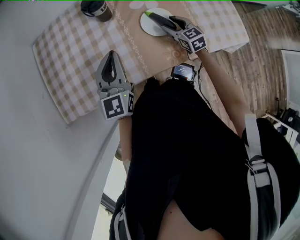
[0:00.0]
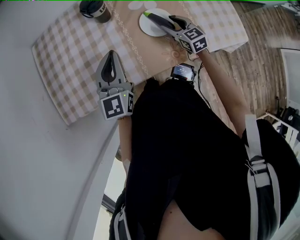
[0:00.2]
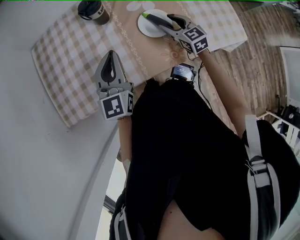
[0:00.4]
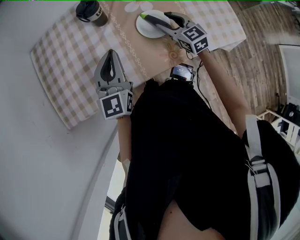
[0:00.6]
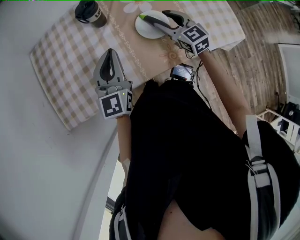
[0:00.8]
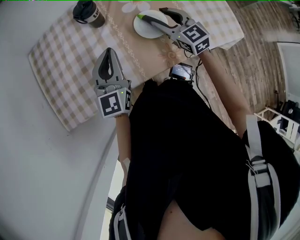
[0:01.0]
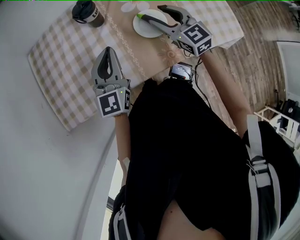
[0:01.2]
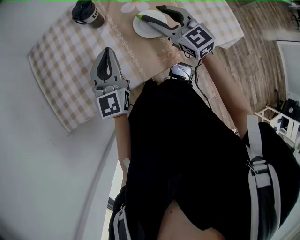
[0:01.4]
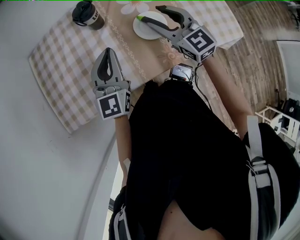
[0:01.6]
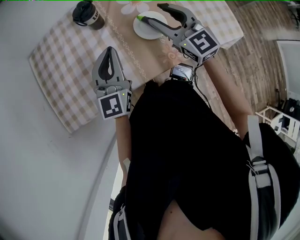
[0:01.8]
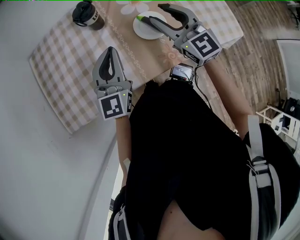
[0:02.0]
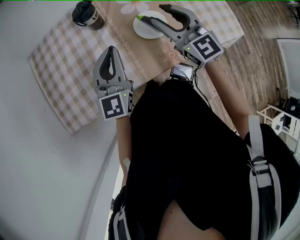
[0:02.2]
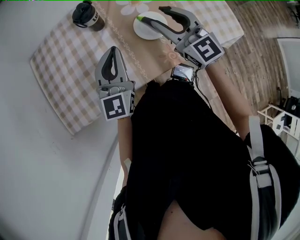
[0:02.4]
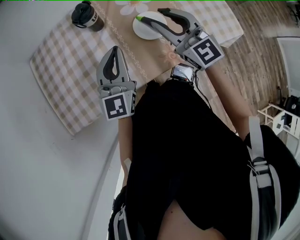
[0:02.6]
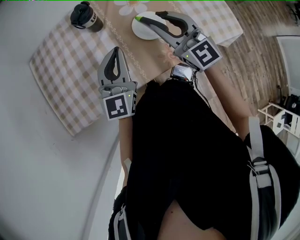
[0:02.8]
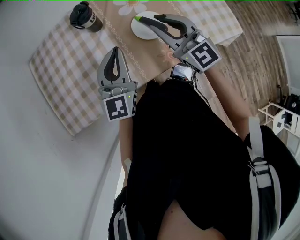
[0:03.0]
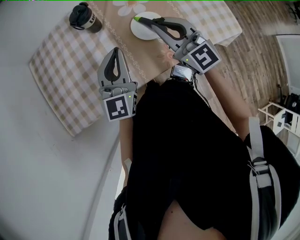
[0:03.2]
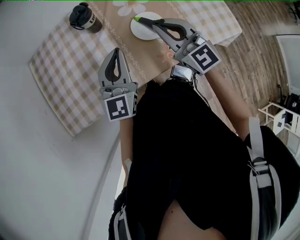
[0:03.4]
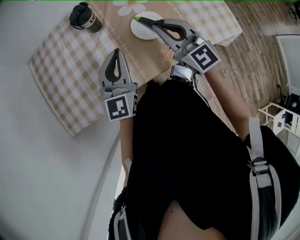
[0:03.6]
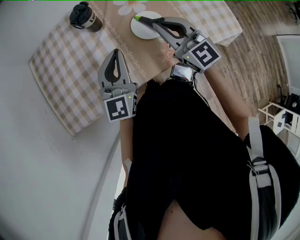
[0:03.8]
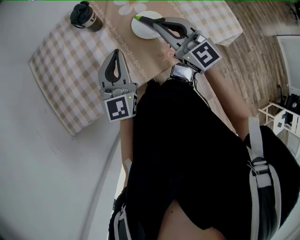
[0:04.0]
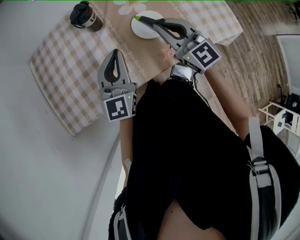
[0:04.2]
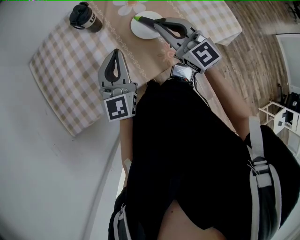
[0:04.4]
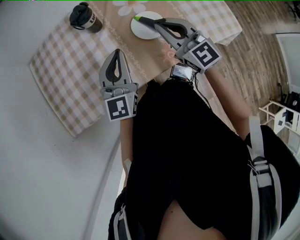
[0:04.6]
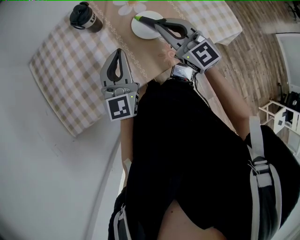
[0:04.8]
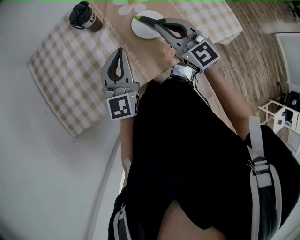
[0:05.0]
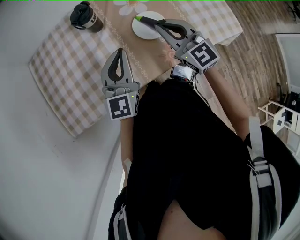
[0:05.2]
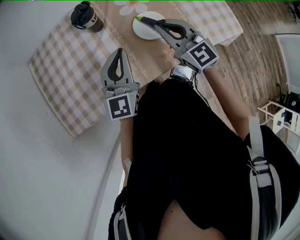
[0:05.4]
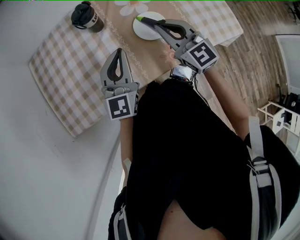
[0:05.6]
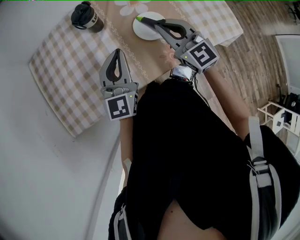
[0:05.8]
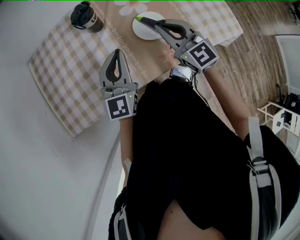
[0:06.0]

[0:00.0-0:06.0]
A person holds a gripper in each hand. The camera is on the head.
0:00.0 to 0:01.6: The right gripper travels upward by some 20 cm, and turns by some 20 degrees.
0:01.6 to 0:03.0: The right gripper closes.
0:03.0 to 0:04.4: The right gripper closes its fingers.
0:04.4 to 0:06.0: The grippers stay close to where they were, moving slightly.

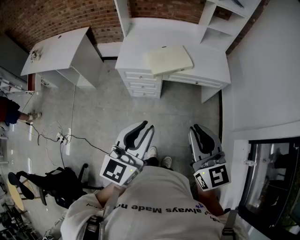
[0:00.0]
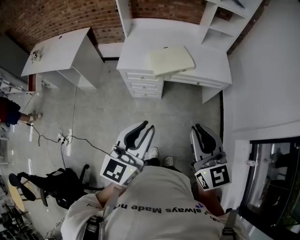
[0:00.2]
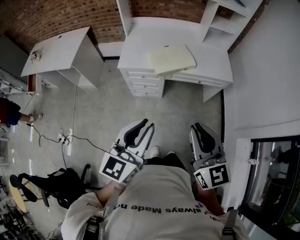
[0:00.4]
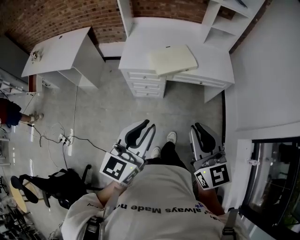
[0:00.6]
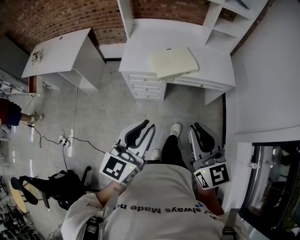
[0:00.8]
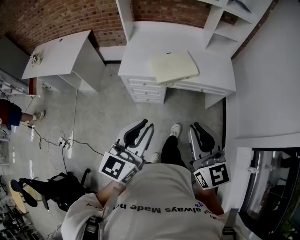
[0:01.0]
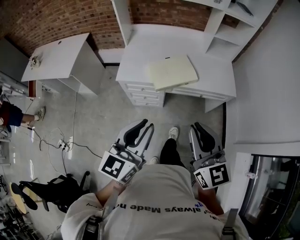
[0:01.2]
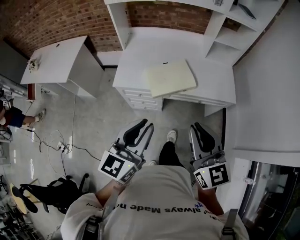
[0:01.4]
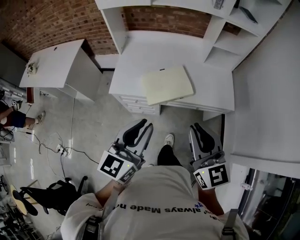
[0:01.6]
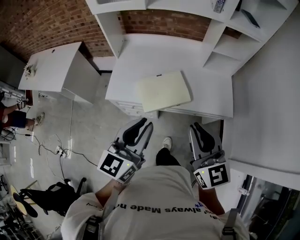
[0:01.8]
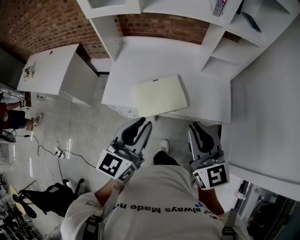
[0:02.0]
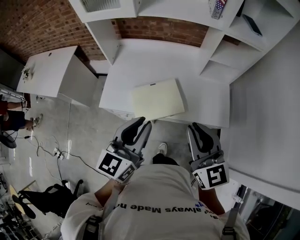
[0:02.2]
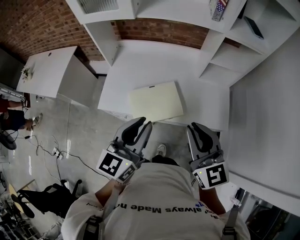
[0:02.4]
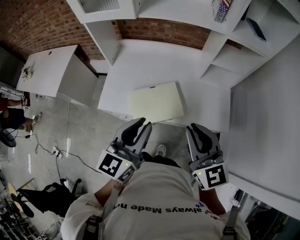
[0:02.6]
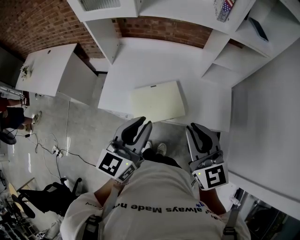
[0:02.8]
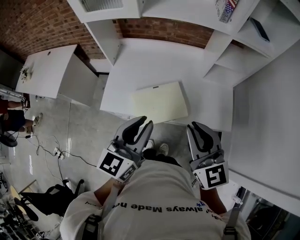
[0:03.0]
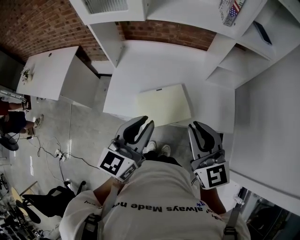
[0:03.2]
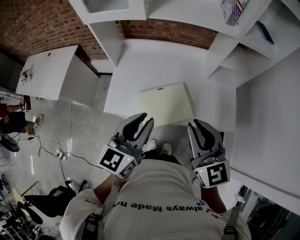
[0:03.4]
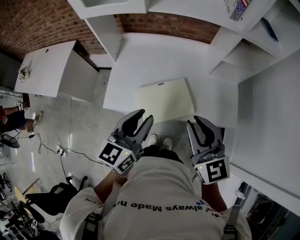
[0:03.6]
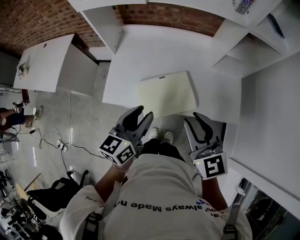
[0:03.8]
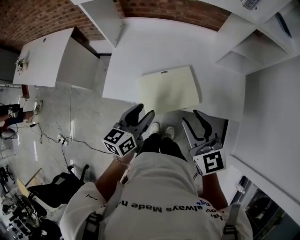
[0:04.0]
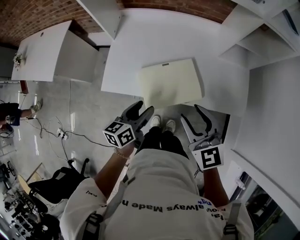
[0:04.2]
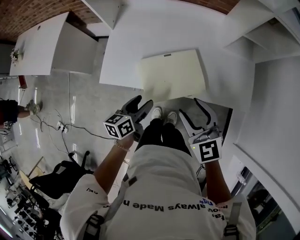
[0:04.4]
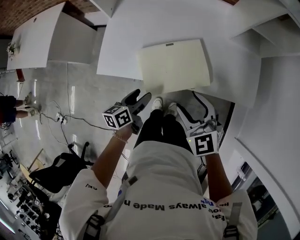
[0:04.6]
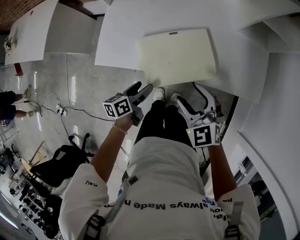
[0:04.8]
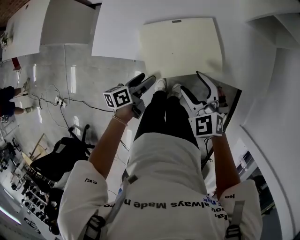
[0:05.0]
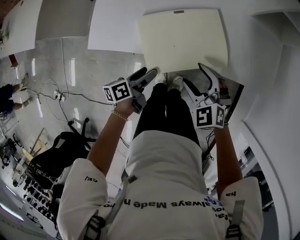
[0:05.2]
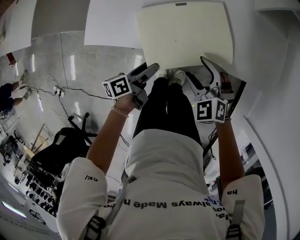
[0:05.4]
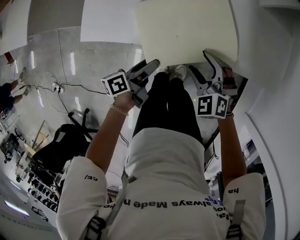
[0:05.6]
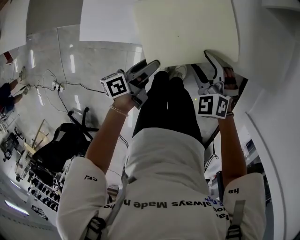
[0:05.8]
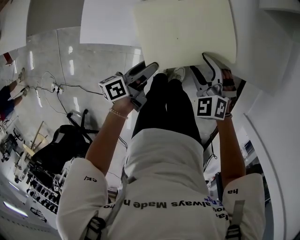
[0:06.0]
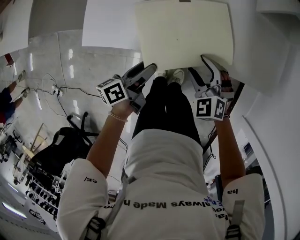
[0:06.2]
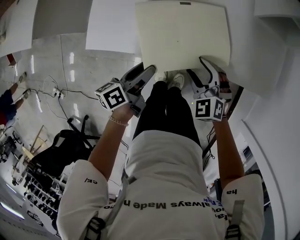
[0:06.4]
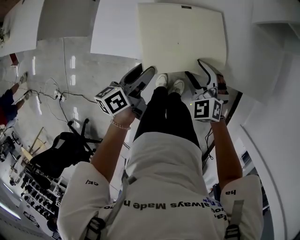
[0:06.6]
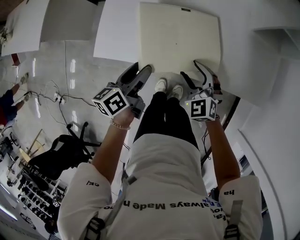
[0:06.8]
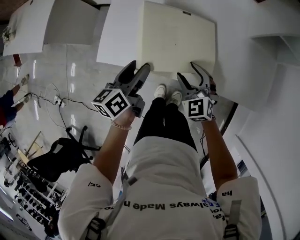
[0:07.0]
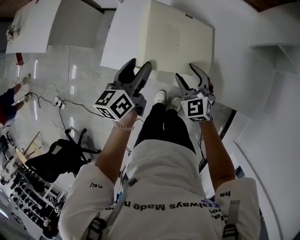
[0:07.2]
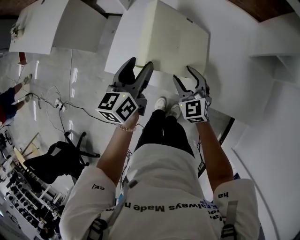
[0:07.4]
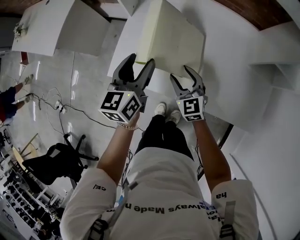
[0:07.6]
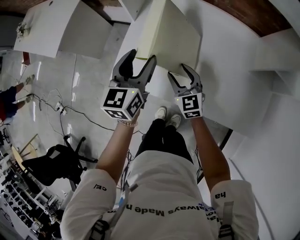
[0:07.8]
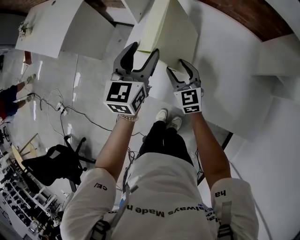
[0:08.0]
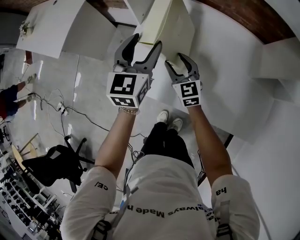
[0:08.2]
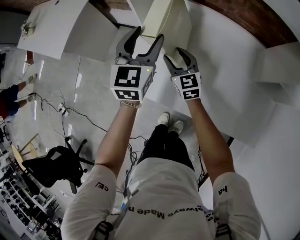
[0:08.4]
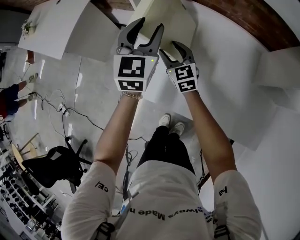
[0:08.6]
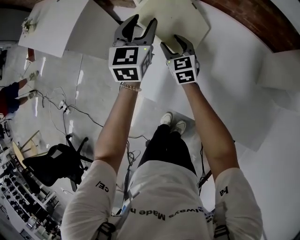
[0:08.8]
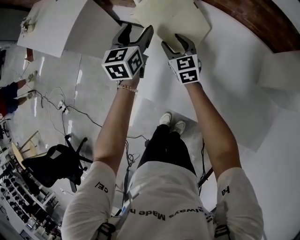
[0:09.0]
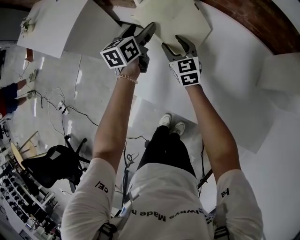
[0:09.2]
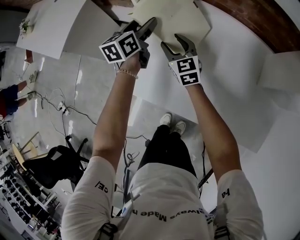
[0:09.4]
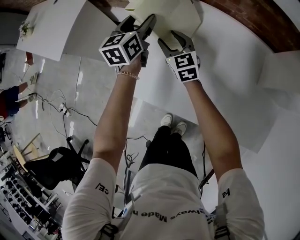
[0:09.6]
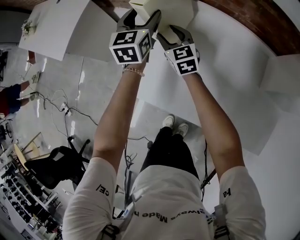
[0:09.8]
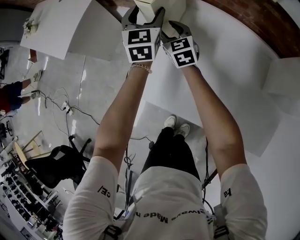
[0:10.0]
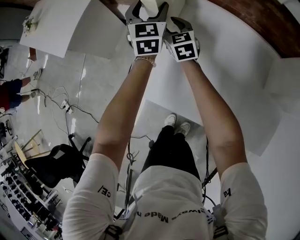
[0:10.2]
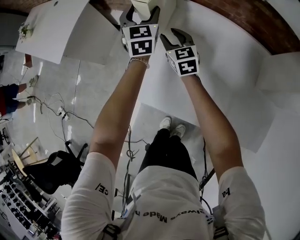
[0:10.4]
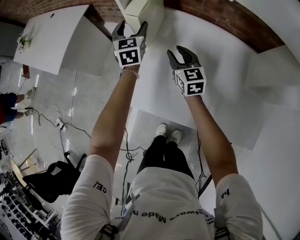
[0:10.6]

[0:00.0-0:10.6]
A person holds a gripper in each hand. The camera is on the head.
0:00.0 to 0:01.6: The grippers both shift forward by some 25 cm.
0:01.6 to 0:03.0: The grippers both shift forward by some 20 cm.
0:03.0 to 0:04.6: The two grippers go about 30 cm downward. The right gripper rotates some 30 degrees, and opens its fingers; the left gripper changes its angle by roughly 50 degrees, and opens.
0:04.6 to 0:06.0: The left gripper goes roughly 10 cm downward, and turns by about 20 degrees; the right gripper travels downward by about 20 cm, and rotates some 20 degrees.
0:06.0 to 0:07.6: The right gripper heads forward, to the left and upward, covering approximately 20 cm, and turns by some 30 degrees, while the left gripper is displaced upward and forward by some 30 cm, and swivels some 60 degrees.
0:07.6 to 0:09.0: The left gripper goes approximately 20 cm forward, while the right gripper travels forward and to the left by approximately 25 cm.
0:09.0 to 0:10.6: The right gripper heads to the right and upward, covering about 10 cm, and moves some 10 cm forward and comes back; the left gripper goes roughly 10 cm forward.

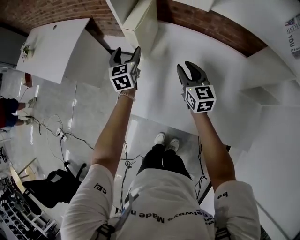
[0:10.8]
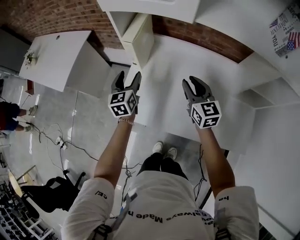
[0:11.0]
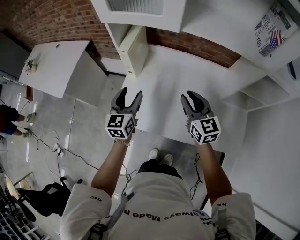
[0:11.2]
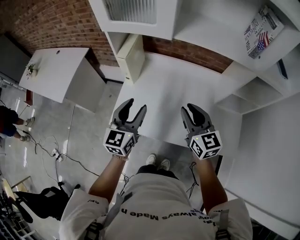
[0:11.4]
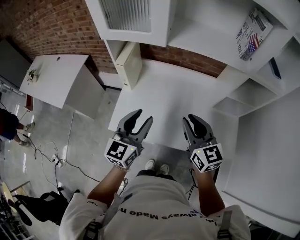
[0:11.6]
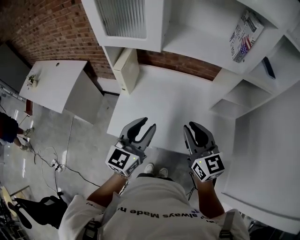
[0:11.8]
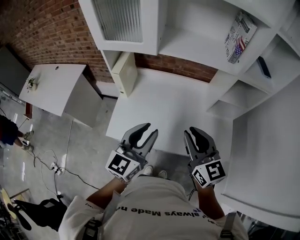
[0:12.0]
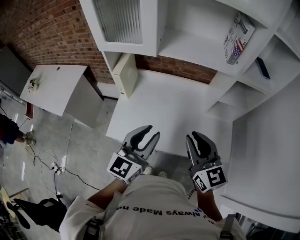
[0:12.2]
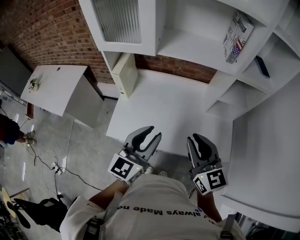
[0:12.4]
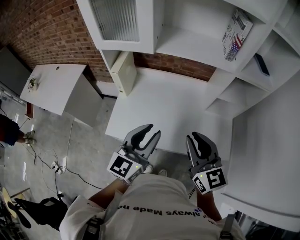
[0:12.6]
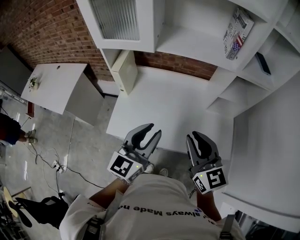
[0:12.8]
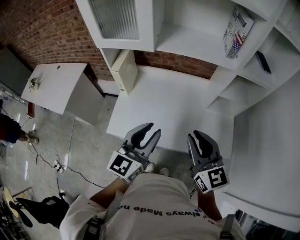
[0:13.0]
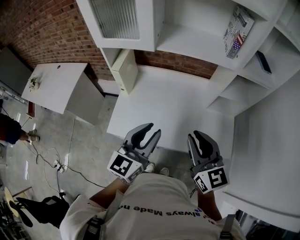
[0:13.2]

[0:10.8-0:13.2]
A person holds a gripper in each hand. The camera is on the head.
0:10.8 to 0:12.0: The right gripper travels backward, upward and to the right by about 35 cm. The left gripper travels backward, to the right and upward by roughly 50 cm, changes its angle by roughly 40 degrees, and closes its fingers.
0:12.0 to 0:13.2: The grippers make only small movements.

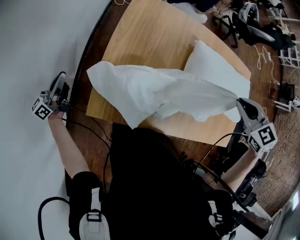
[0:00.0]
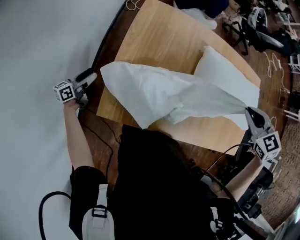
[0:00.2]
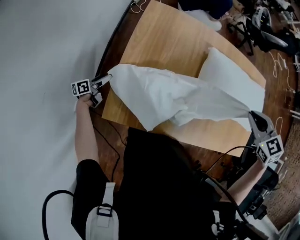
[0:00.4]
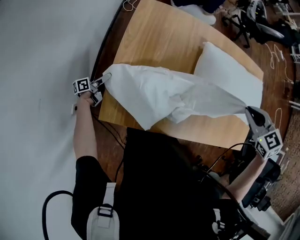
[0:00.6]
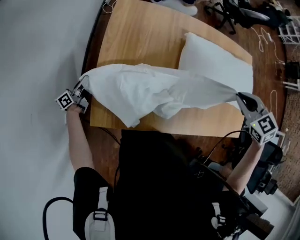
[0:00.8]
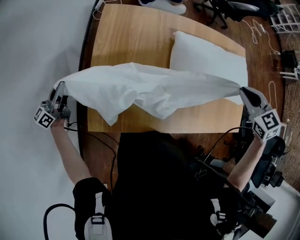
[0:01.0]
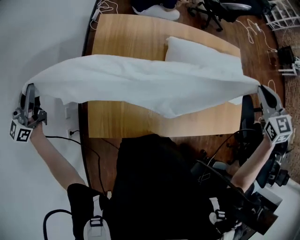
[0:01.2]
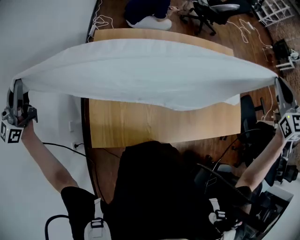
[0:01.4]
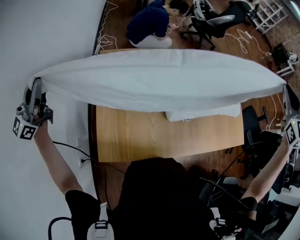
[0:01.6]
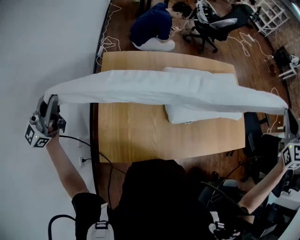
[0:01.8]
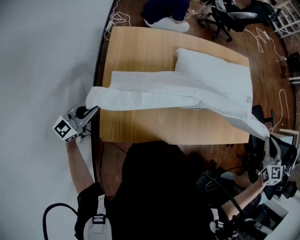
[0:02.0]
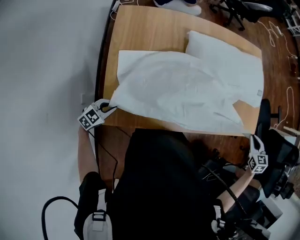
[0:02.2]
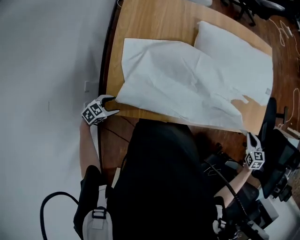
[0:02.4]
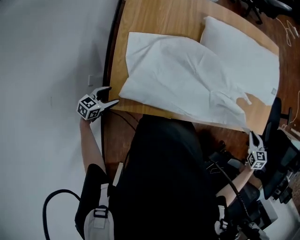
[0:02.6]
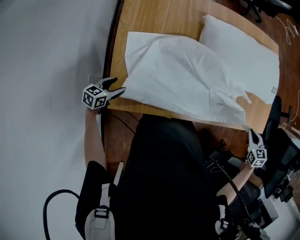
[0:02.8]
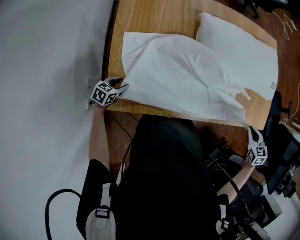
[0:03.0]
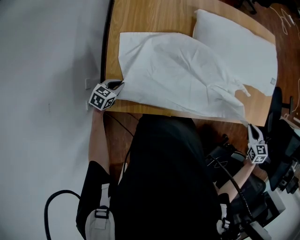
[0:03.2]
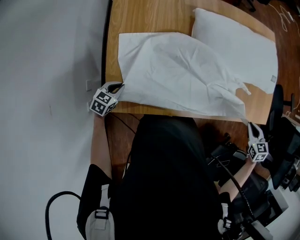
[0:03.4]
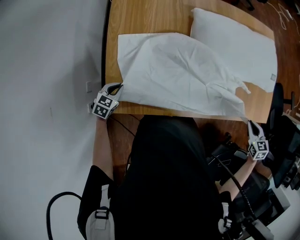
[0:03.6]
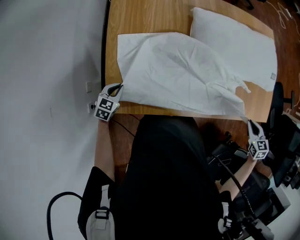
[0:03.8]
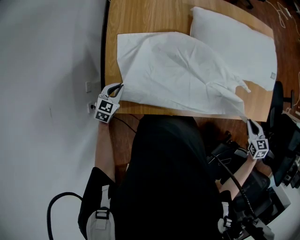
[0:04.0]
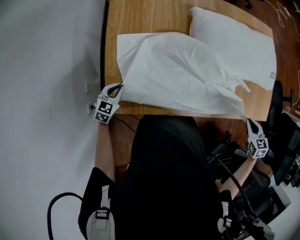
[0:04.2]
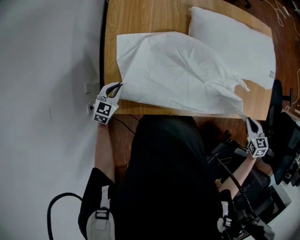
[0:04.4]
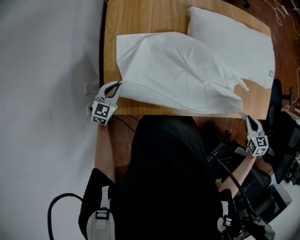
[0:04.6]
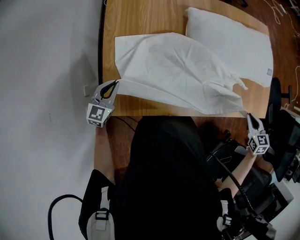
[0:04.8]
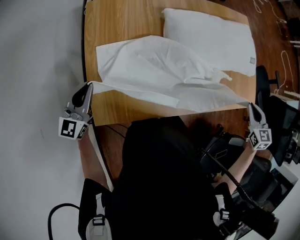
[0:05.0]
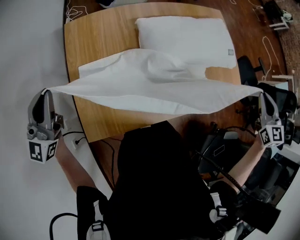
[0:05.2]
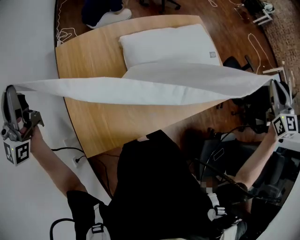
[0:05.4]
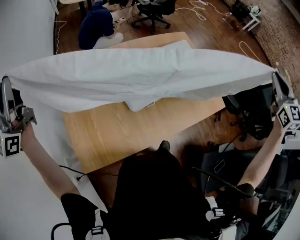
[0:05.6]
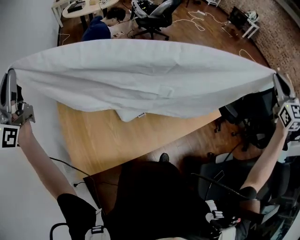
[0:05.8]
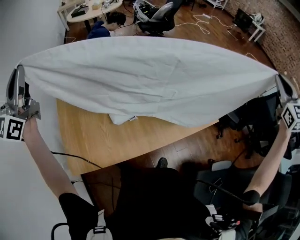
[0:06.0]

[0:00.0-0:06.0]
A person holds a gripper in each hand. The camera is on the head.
0:00.0 to 0:01.6: The grippers both shift upward by approximately 30 cm. The right gripper points its fingers some 40 degrees further upward. Meanwhile the left gripper rotates approximately 40 degrees, and opens, then closes once more.
0:01.6 to 0:03.0: Both grippers move downward, about 50 cm. The left gripper points its fingers approximately 70 degrees further downward, and opens up. Meanwhile the right gripper tips its fingers downward by about 40 degrees.
0:03.0 to 0:04.4: The left gripper is displaced upward by roughly 5 cm, swivels about 30 degrees, and closes.
0:04.4 to 0:06.0: The left gripper heads upward, covering some 60 cm, and tips its fingers upward by roughly 60 degrees. Meanwhile the right gripper heads upward and to the right, covering about 60 cm, and points its fingers approximately 40 degrees further upward.
